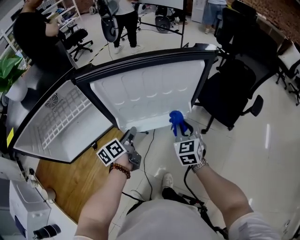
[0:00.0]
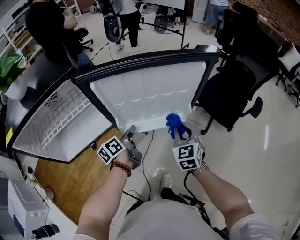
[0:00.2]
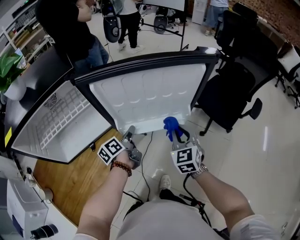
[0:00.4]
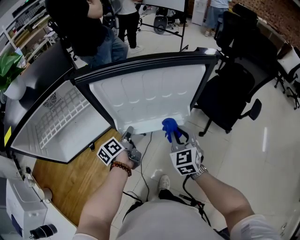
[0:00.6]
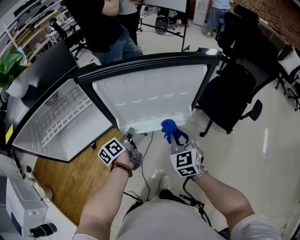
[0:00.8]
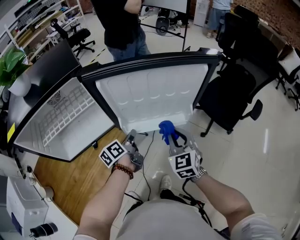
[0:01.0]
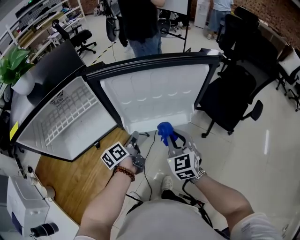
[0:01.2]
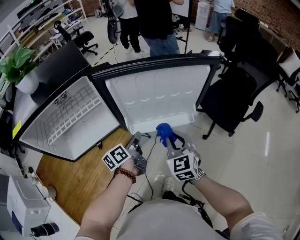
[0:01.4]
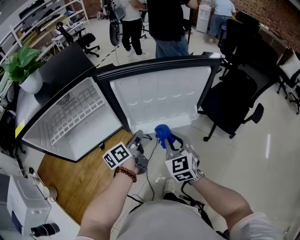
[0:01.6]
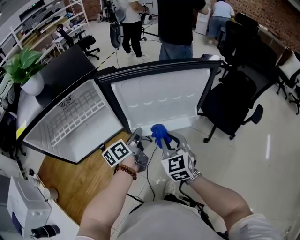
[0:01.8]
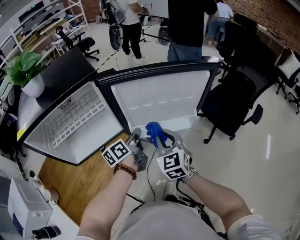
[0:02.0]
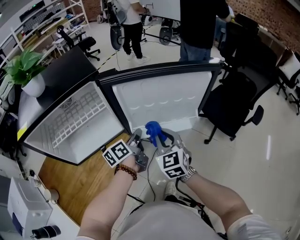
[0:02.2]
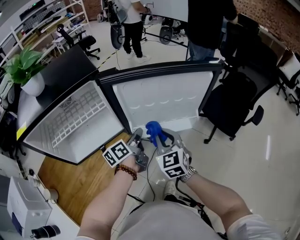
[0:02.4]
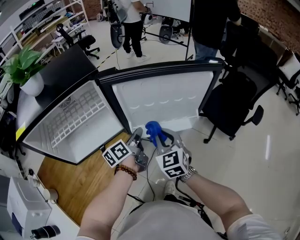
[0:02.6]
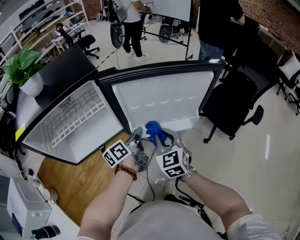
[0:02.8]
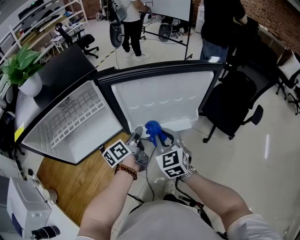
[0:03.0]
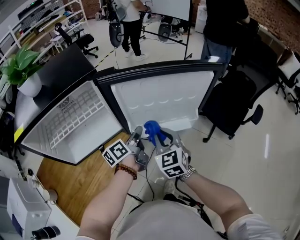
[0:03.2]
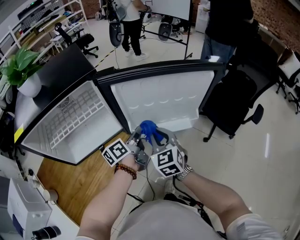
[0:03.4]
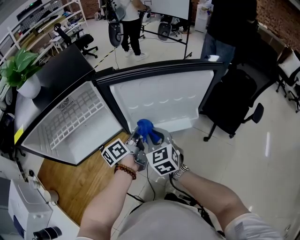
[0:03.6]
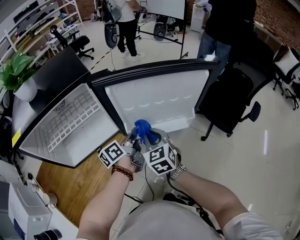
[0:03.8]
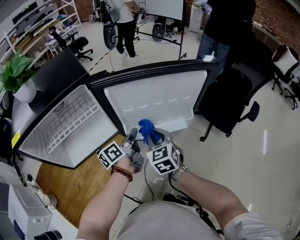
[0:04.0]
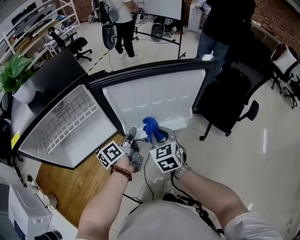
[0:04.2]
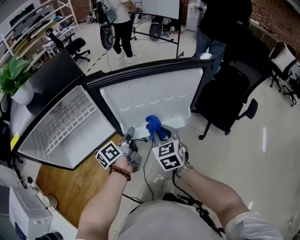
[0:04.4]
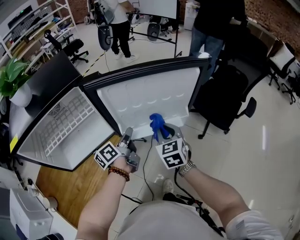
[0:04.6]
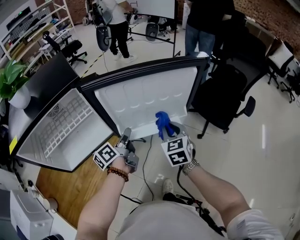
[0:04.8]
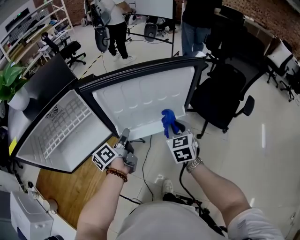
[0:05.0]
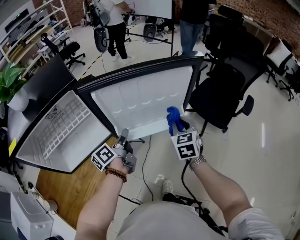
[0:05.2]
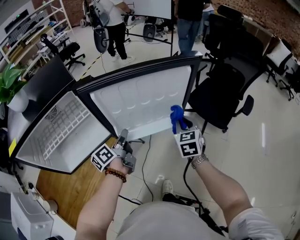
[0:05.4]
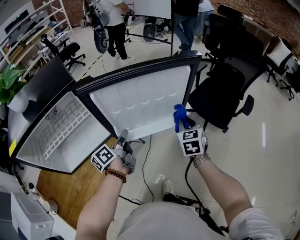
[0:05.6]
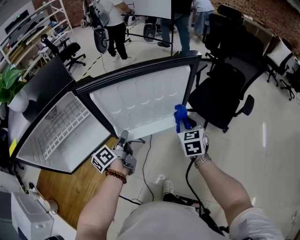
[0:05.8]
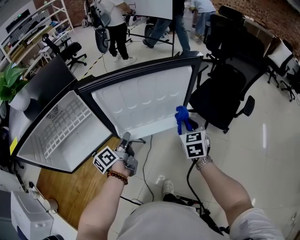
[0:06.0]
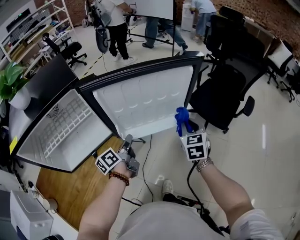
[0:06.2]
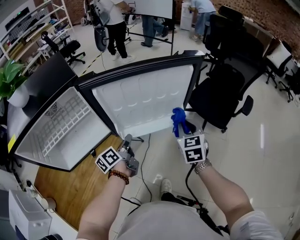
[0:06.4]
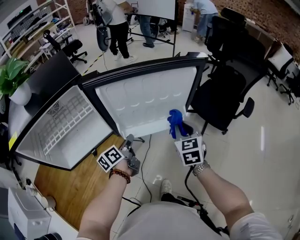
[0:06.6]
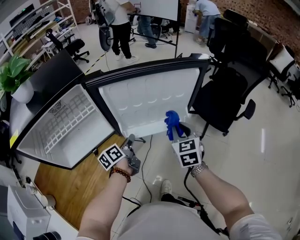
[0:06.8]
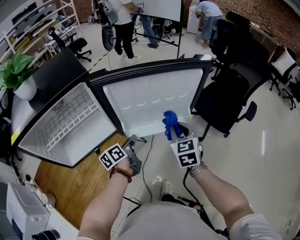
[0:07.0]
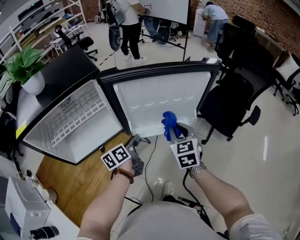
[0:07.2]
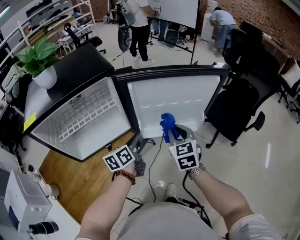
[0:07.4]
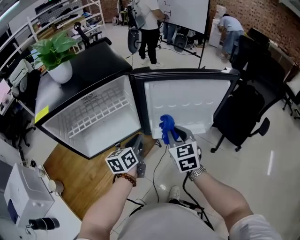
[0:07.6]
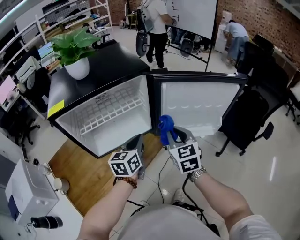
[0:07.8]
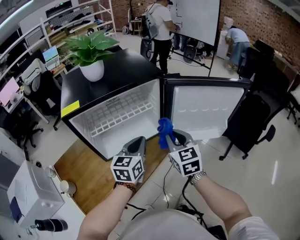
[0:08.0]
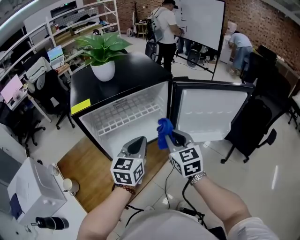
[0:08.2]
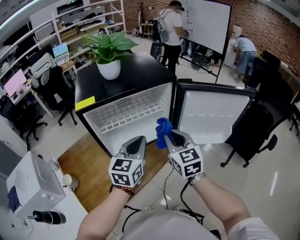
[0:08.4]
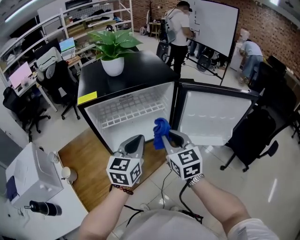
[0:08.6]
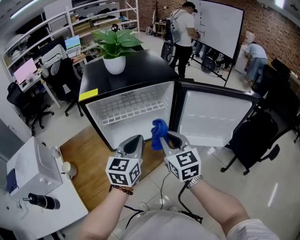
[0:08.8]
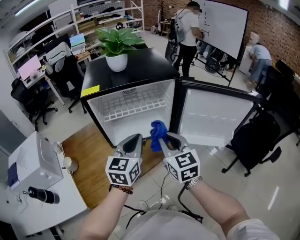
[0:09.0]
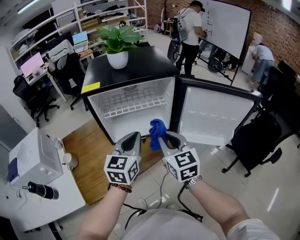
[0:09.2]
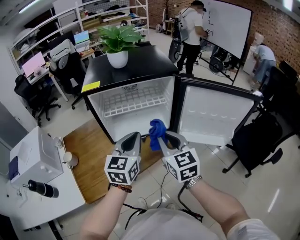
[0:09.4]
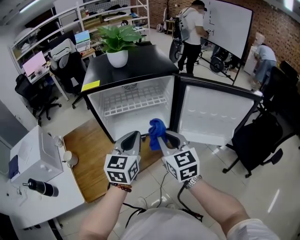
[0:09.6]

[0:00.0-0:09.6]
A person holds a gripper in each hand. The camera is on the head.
0:00.0 to 0:01.6: The right gripper travels to the left, backward and upward by some 15 cm, while the left gripper moves roughly 5 cm, and closes up.
0:01.6 to 0:03.2: The right gripper ends up about 5 cm from where it was.
0:03.2 to 0:04.8: The right gripper goes about 10 cm to the right.
0:04.8 to 0:06.4: The right gripper is displaced to the right by approximately 10 cm.
0:06.4 to 0:08.0: The right gripper travels to the left by roughly 30 cm, and rotates roughly 30 degrees. Meanwhile the left gripper shifts approximately 25 cm to the left, upward and backward, and rotates around the line of its fingers by some 50 degrees, clockwise from behind.
0:08.0 to 0:09.6: The left gripper moves backward and upward, about 10 cm. Meanwhile the right gripper moves backward and to the left, roughly 10 cm, and turns by approximately 20 degrees.

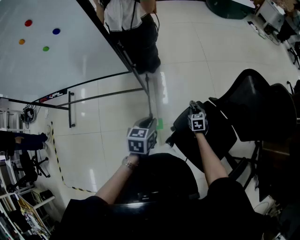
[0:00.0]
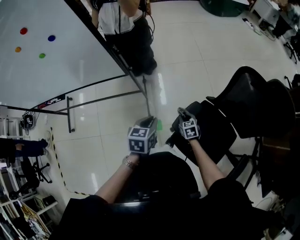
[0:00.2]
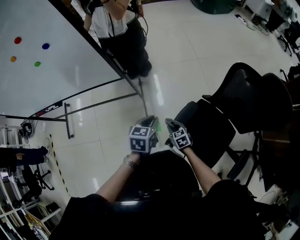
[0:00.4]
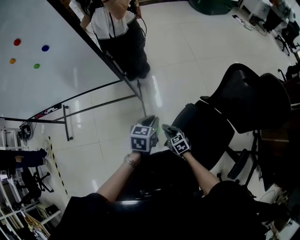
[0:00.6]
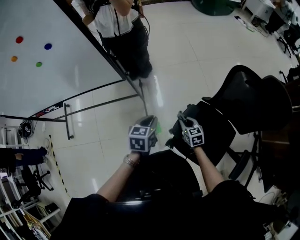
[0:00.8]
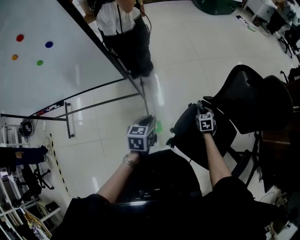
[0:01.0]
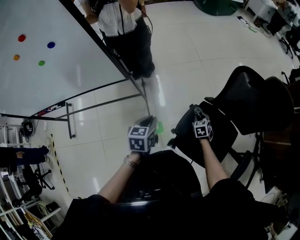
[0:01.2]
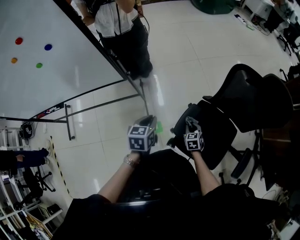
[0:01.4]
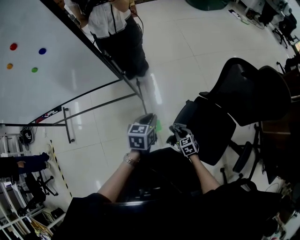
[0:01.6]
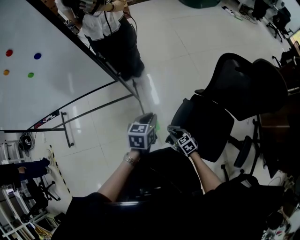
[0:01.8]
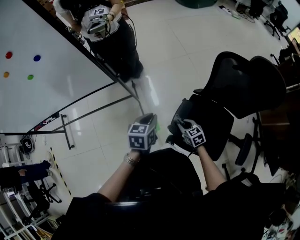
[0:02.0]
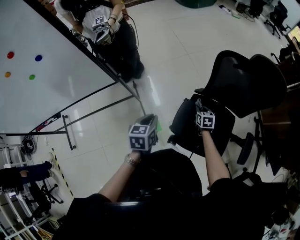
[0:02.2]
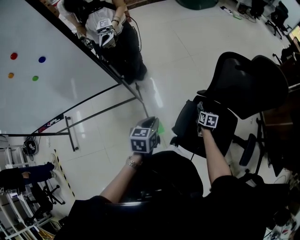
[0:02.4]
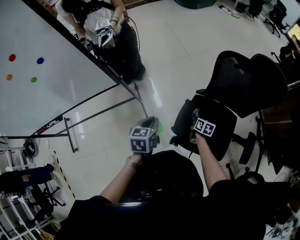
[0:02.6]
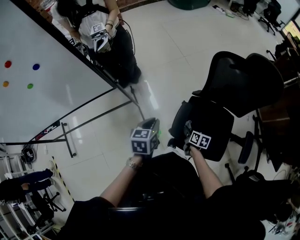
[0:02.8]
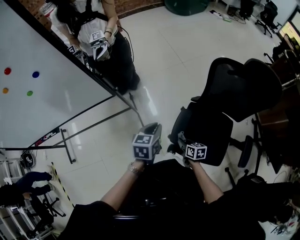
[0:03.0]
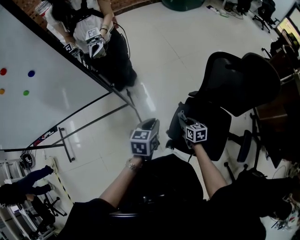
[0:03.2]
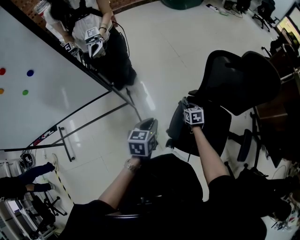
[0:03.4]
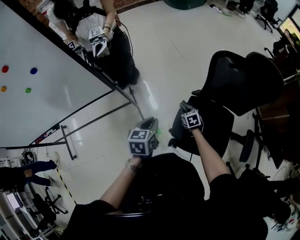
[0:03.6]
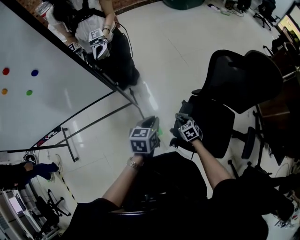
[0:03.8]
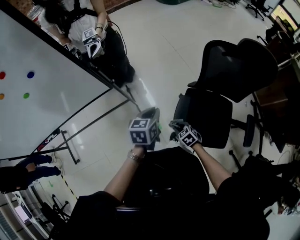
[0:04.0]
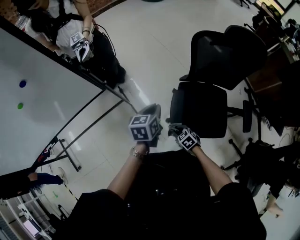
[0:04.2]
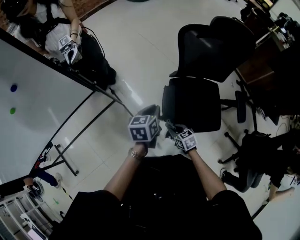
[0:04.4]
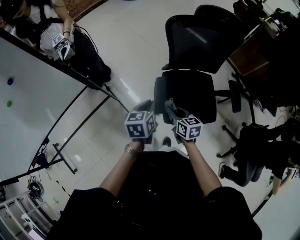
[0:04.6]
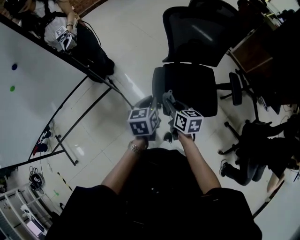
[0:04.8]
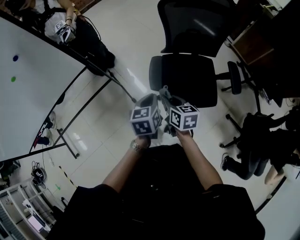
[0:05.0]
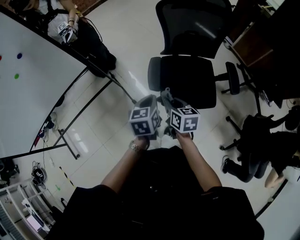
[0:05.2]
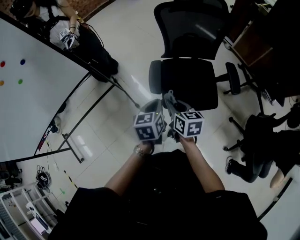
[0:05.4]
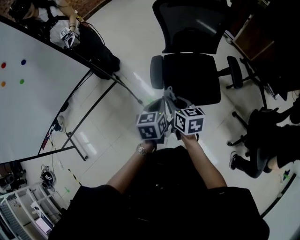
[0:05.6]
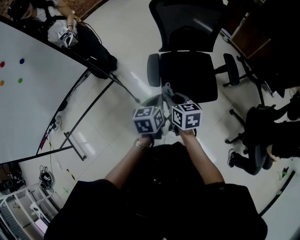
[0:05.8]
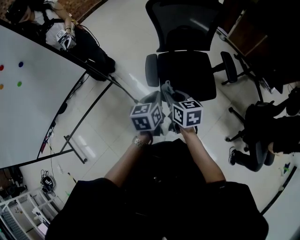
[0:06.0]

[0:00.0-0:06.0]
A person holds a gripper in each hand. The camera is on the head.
0:00.0 to 0:01.6: The right gripper moves left and right over some 20 cm, changing direction 2 times.
0:01.6 to 0:03.0: The right gripper reaches roughly 15 cm to the right, then returns, and rotates about 40 degrees.
0:03.0 to 0:04.4: The right gripper goes forward and returns, some 15 cm each way, and turns by roughly 20 degrees.
0:04.4 to 0:06.0: The right gripper heads upward, covering roughly 20 cm, and changes its angle by approximately 30 degrees; the left gripper heads backward and to the right, covering about 20 cm.

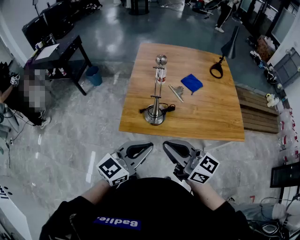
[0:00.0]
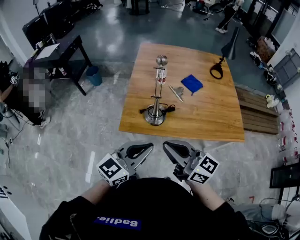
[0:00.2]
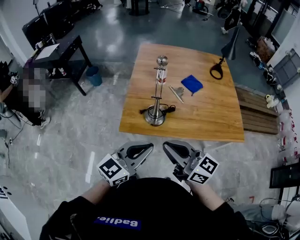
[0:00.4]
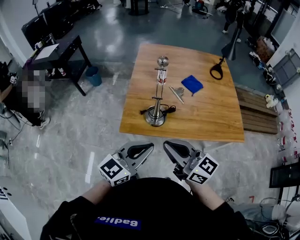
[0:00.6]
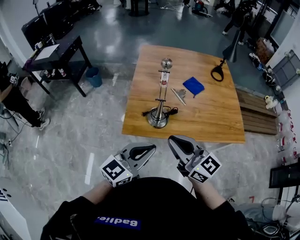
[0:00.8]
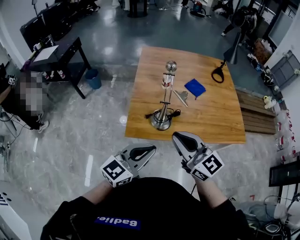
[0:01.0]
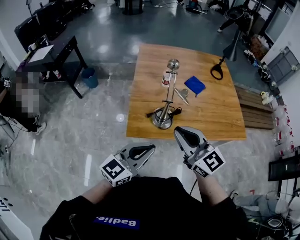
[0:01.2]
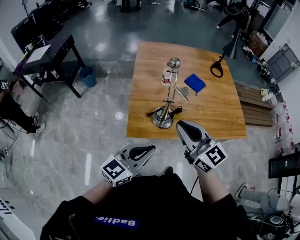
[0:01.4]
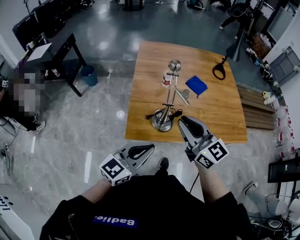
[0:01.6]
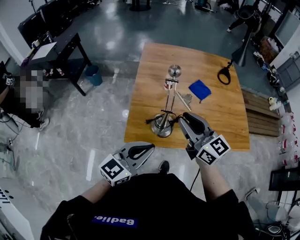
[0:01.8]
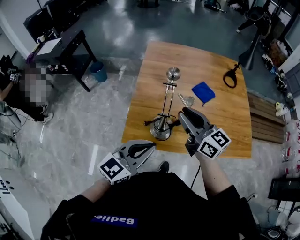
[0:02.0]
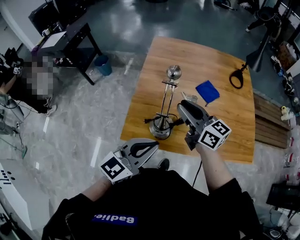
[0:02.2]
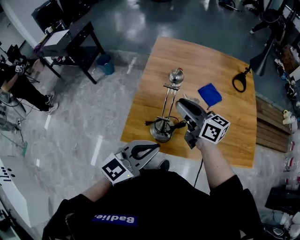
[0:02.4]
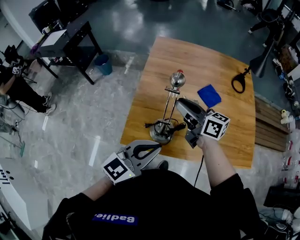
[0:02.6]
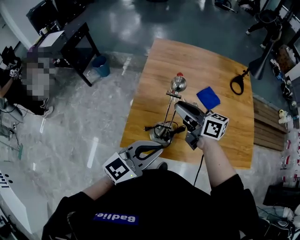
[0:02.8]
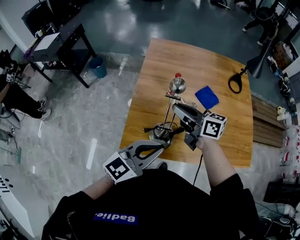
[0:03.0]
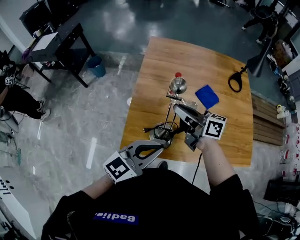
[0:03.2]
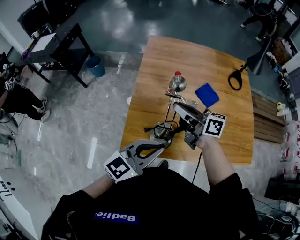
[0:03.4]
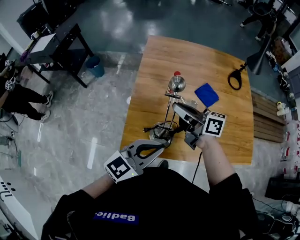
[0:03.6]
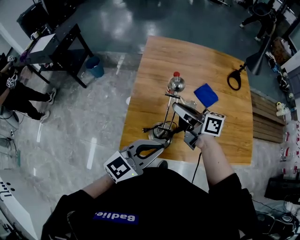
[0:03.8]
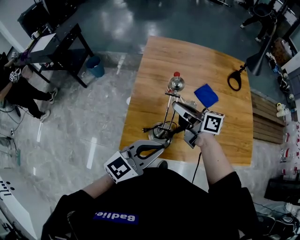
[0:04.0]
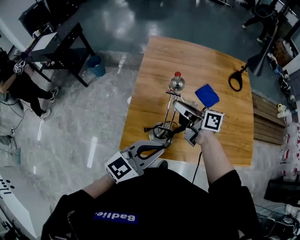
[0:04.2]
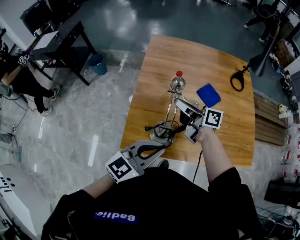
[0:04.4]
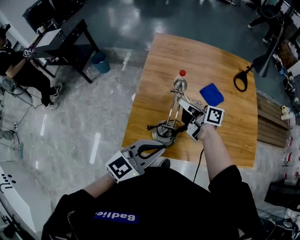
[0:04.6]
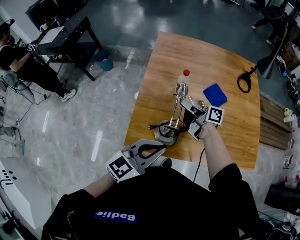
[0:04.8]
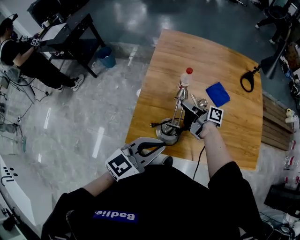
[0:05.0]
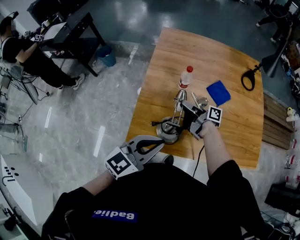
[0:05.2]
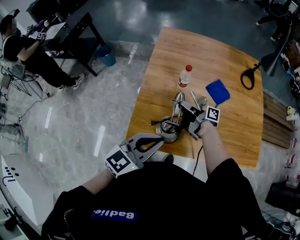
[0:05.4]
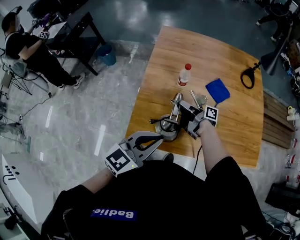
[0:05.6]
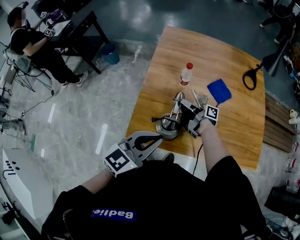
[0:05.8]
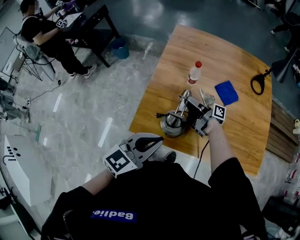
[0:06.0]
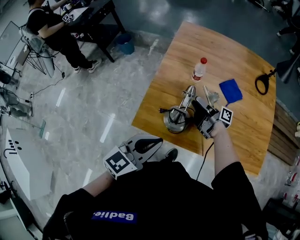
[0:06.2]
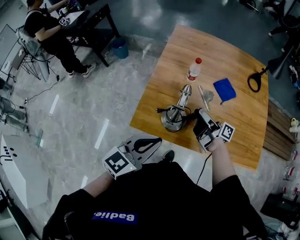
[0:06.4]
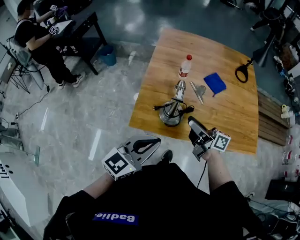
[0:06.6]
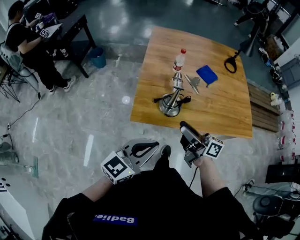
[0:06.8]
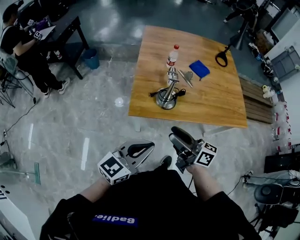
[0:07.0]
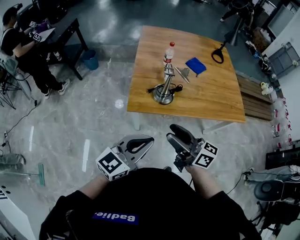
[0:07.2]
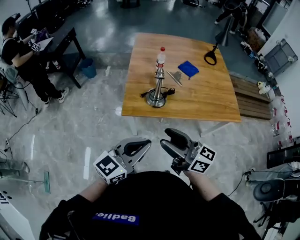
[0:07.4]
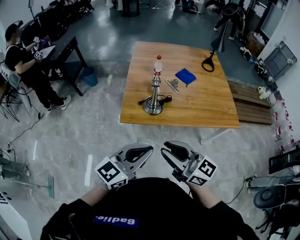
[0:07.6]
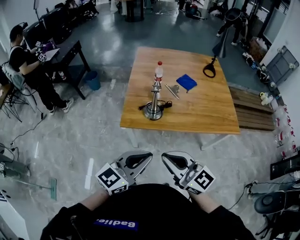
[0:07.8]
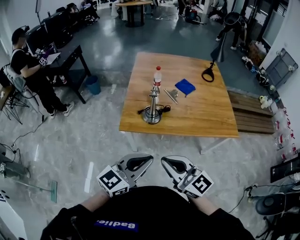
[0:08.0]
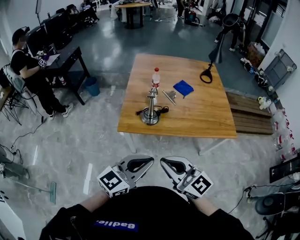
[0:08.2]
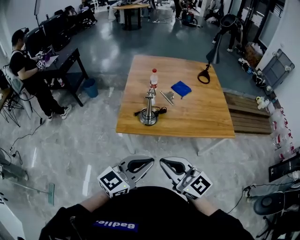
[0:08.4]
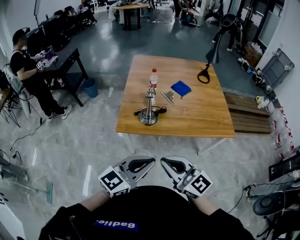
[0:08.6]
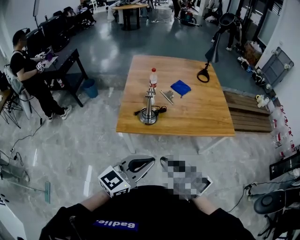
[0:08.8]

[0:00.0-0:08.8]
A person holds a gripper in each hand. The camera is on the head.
0:00.0 to 0:01.4: The right gripper is displaced forward and to the left by approximately 10 cm, and swivels approximately 30 degrees. Meanwhile the left gripper heads to the left, covering some 10 cm.
0:01.4 to 0:03.0: The left gripper is displaced forward and to the right by some 20 cm. Meanwhile the right gripper goes about 25 cm forward, and rotates some 40 degrees.
0:03.0 to 0:04.4: The right gripper shifts by some 5 cm.
0:04.4 to 0:05.8: The right gripper heads downward, covering about 15 cm, and turns by roughly 40 degrees.
0:05.8 to 0:07.4: The right gripper moves backward and upward, about 50 cm, twists some 60 degrees counterclockwise, seen from behind, and opens its fingers; the left gripper travels backward by about 30 cm.
0:07.4 to 0:08.8: The left gripper is displaced to the right by some 10 cm. The right gripper travels to the right and backward by roughly 10 cm, changes its angle by about 30 degrees, and closes.
